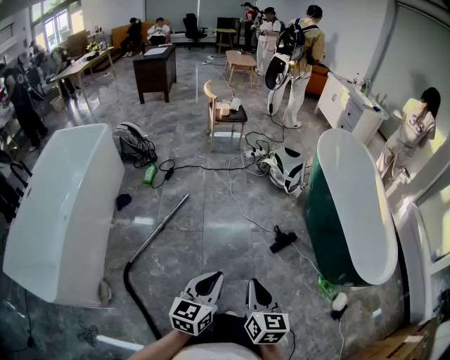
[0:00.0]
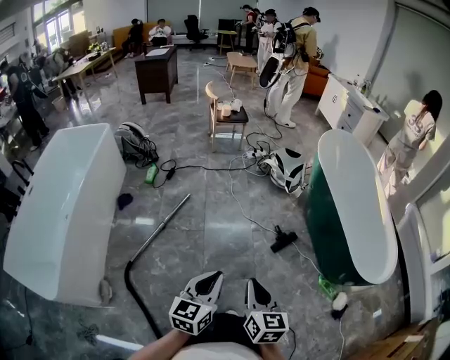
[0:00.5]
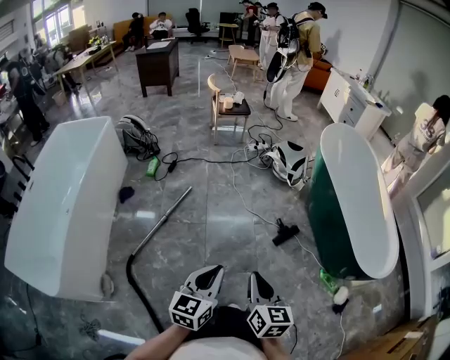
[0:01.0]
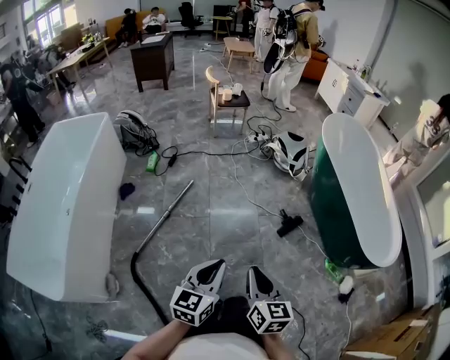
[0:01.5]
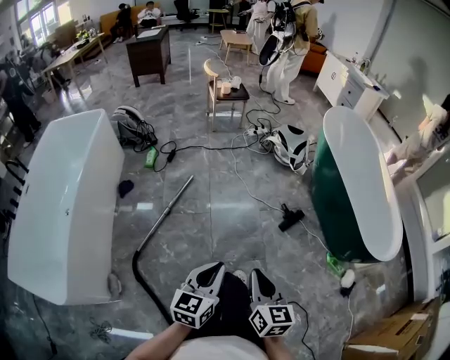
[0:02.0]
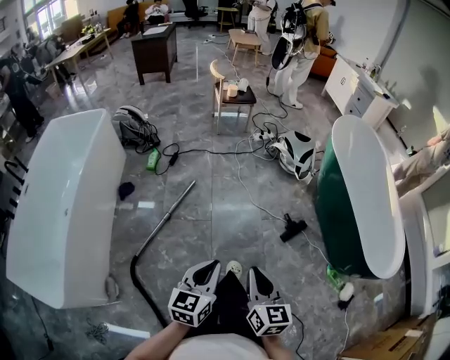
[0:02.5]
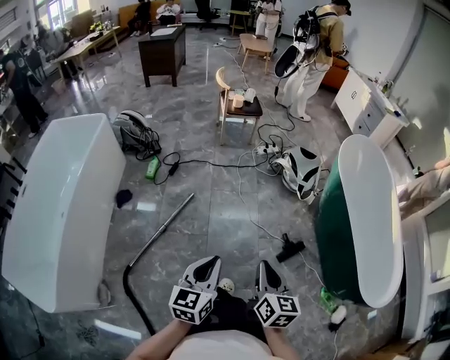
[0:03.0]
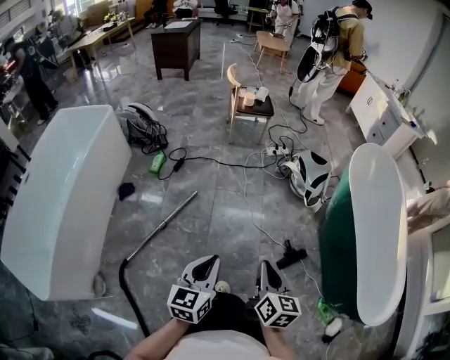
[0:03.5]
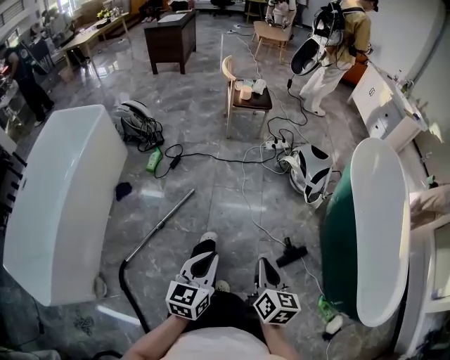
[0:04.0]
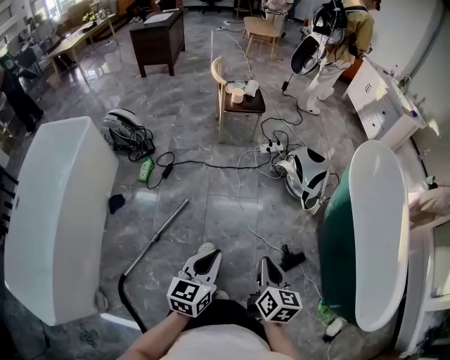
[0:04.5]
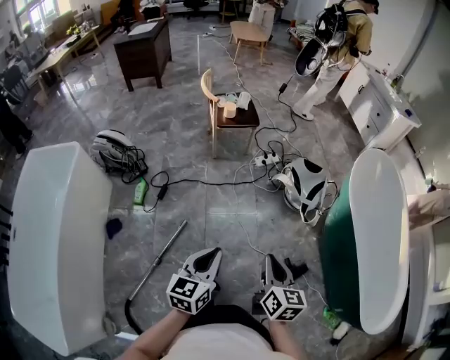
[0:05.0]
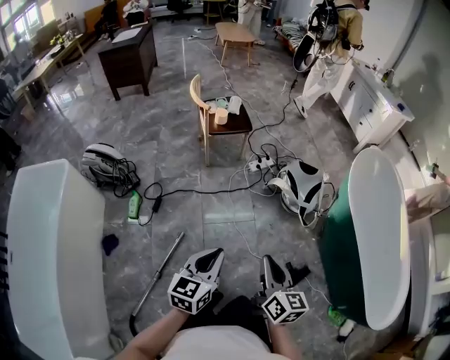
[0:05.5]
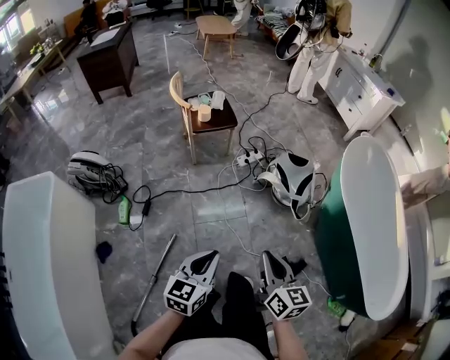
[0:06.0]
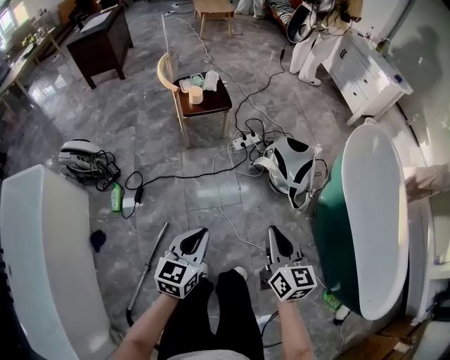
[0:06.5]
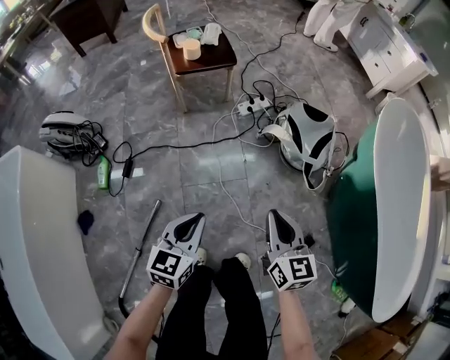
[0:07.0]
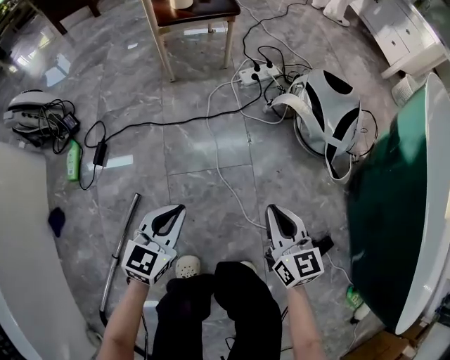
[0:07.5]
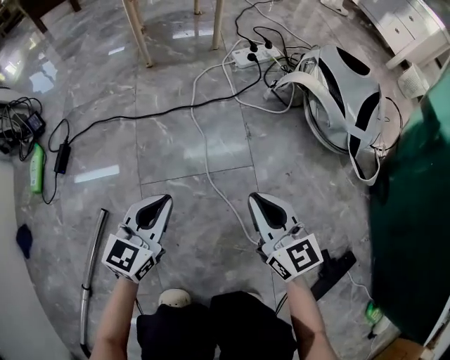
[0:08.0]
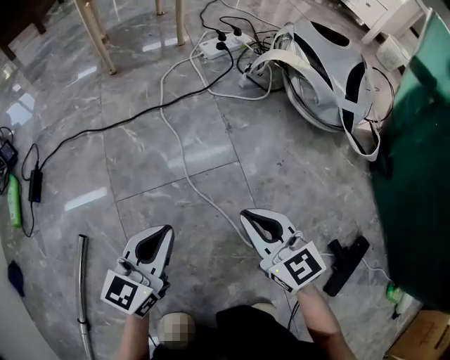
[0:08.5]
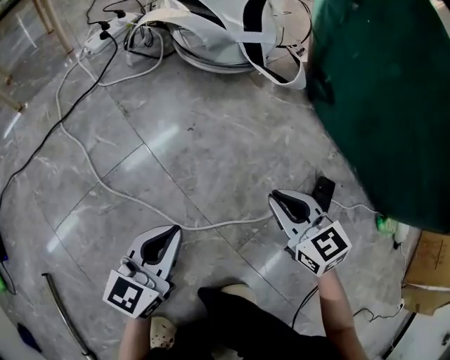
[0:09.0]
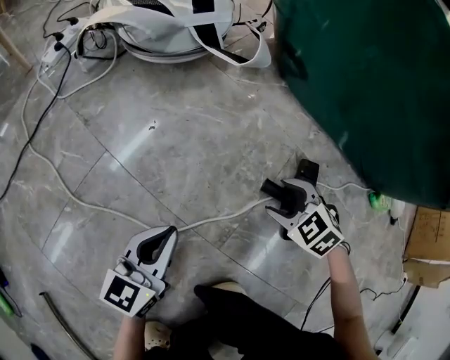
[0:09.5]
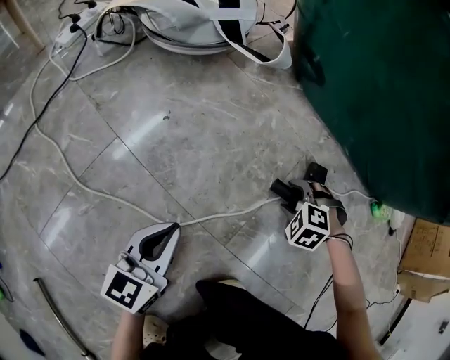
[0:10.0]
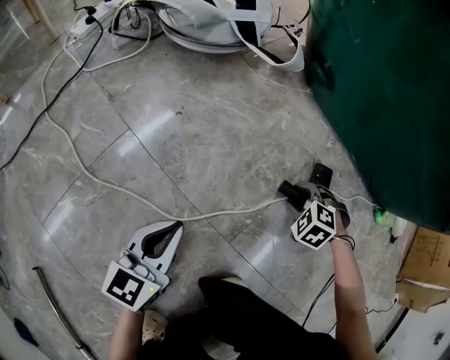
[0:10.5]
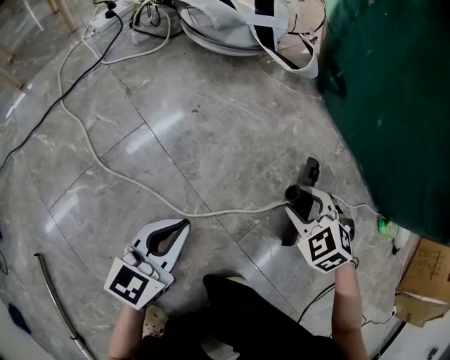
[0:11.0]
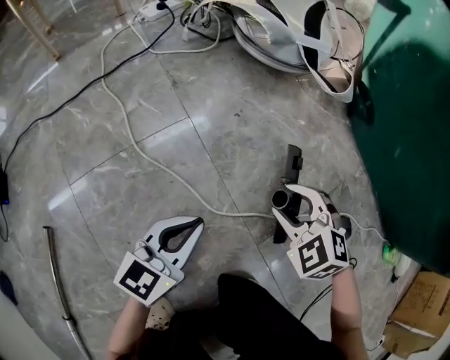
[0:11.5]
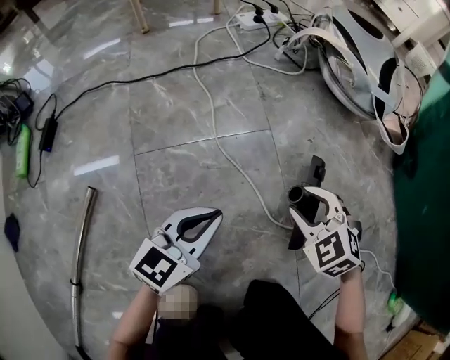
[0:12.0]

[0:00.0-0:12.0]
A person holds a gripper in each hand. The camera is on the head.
0:00.0 to 0:02.0: Both grippers move to the left, roughly 5 cm.
0:02.0 to 0:04.0: The grippers both shift forward by some 35 cm.
0:04.0 to 0:06.0: Both grippers travel together forward, about 30 cm. The left gripper rotates approximately 20 degrees.
0:06.0 to 0:08.0: The two grippers go some 60 cm downward. The right gripper turns by approximately 30 degrees.
0:08.0 to 0:10.0: The left gripper changes place by roughly 30 cm, and turns by roughly 40 degrees; the right gripper changes place by about 50 cm, points its fingers about 60 degrees further downward, and opens up.
0:10.0 to 0:12.0: The left gripper shifts by about 20 cm, and changes its angle by roughly 20 degrees; the right gripper shifts by some 35 cm, and rotates some 40 degrees.

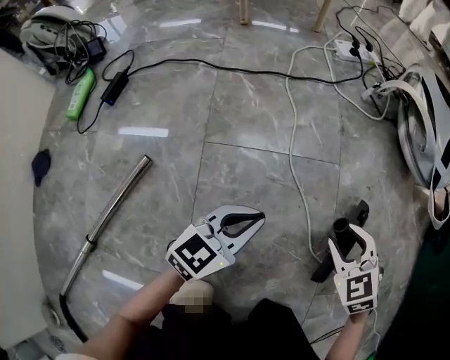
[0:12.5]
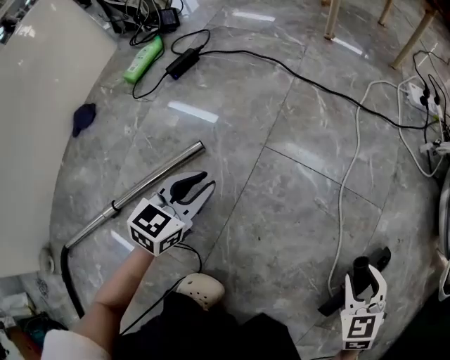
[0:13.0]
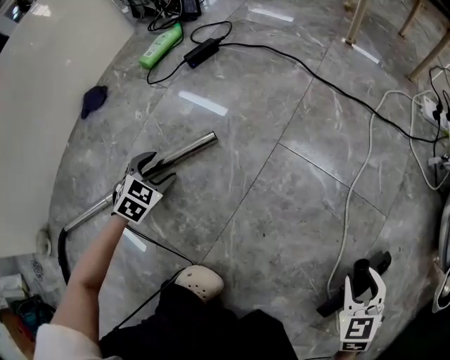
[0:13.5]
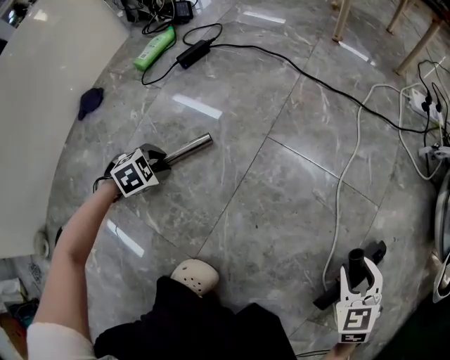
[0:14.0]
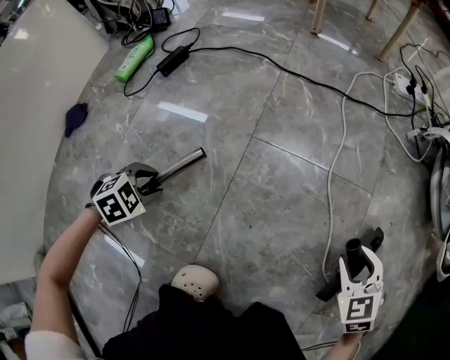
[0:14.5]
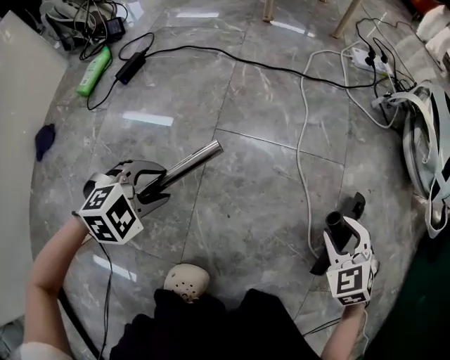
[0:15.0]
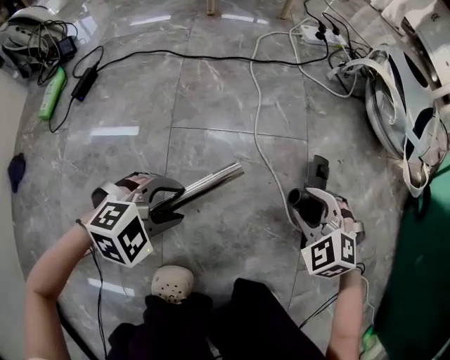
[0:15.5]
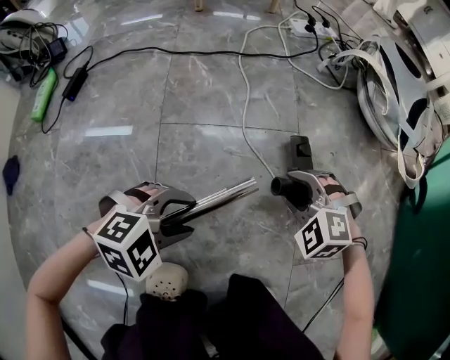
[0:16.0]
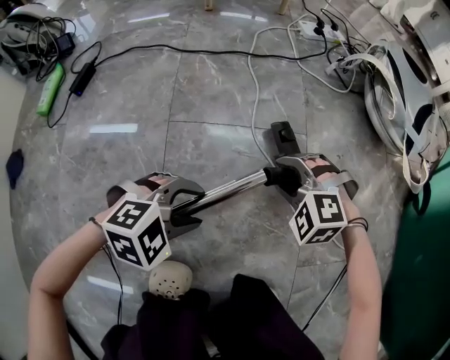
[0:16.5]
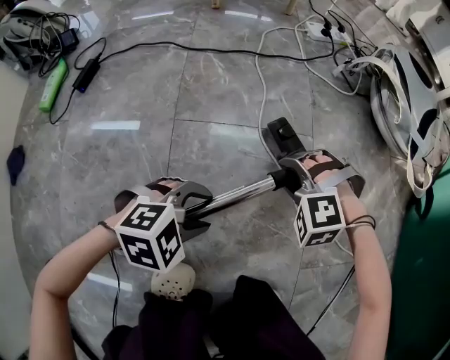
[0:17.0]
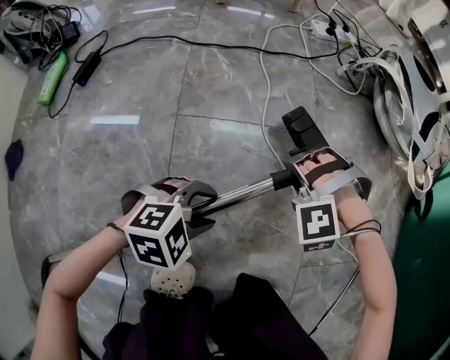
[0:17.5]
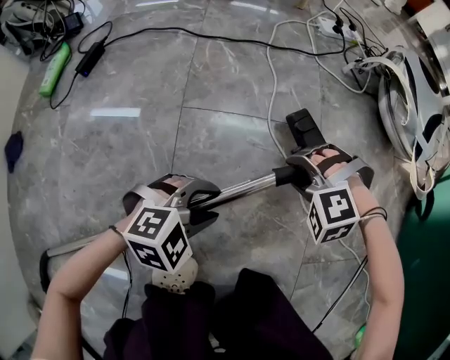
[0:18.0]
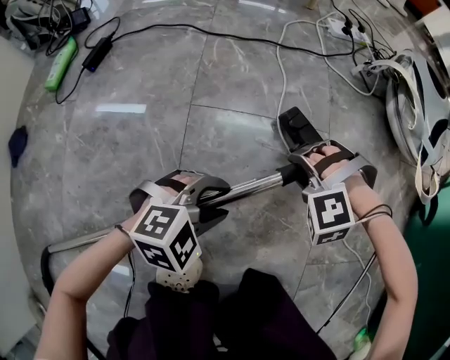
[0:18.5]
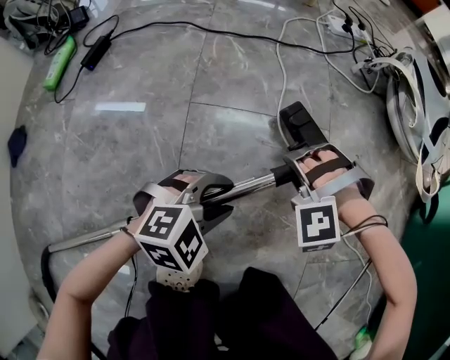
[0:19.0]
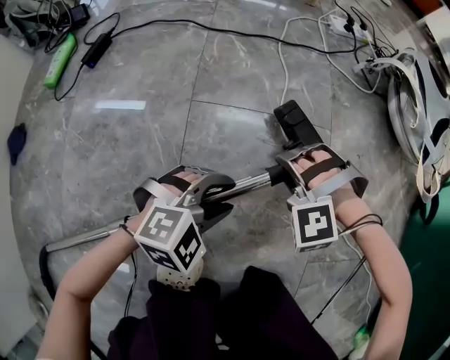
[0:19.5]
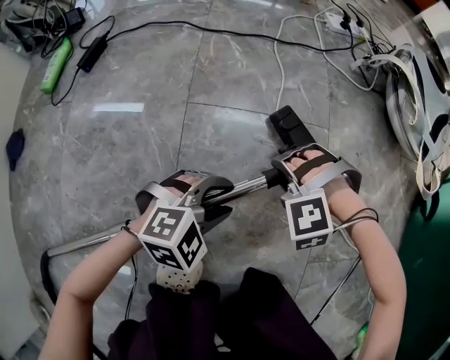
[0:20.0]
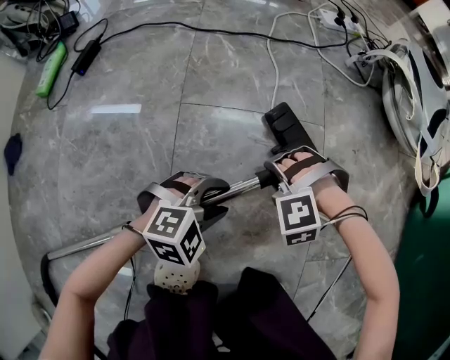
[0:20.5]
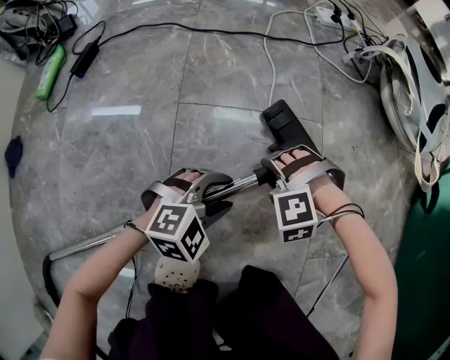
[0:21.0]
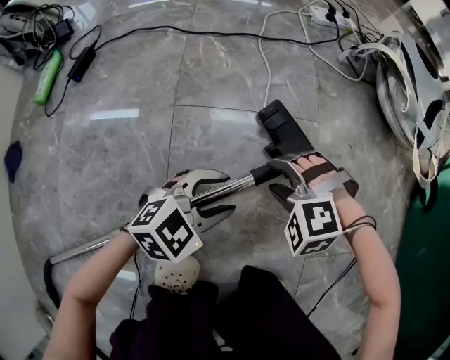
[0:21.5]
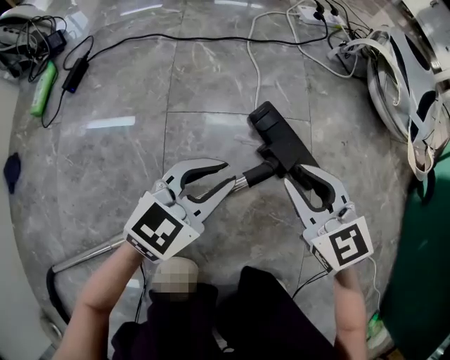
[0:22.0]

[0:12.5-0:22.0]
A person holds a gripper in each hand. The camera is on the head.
0:12.5 to 0:14.5: The left gripper shifts by about 35 cm, tips its fingers downward by approximately 60 degrees, and opens.
0:14.5 to 0:16.5: The right gripper moves about 10 cm, and twists roughly 40 degrees counterclockwise, seen from behind, while the left gripper ends up about 30 cm from where it was, and turns by roughly 50 degrees.
0:16.5 to 0:18.0: The right gripper swivels about 20 degrees.
0:18.0 to 0:20.0: The right gripper moves about 5 cm.
0:20.0 to 0:22.0: The left gripper moves upward and forward, about 10 cm, and rotates about 40 degrees, while the right gripper travels upward by approximately 10 cm, and rotates around the line of its fingers by about 80 degrees, clockwise from behind.

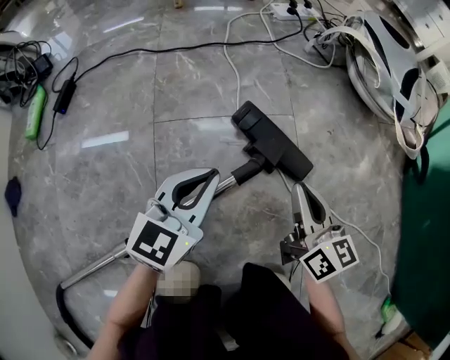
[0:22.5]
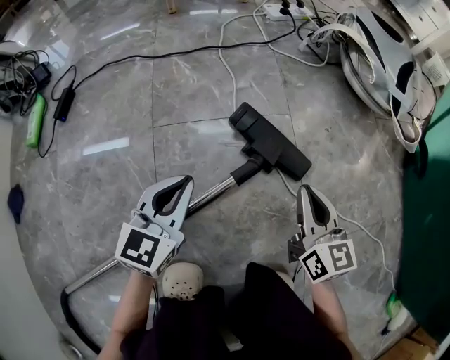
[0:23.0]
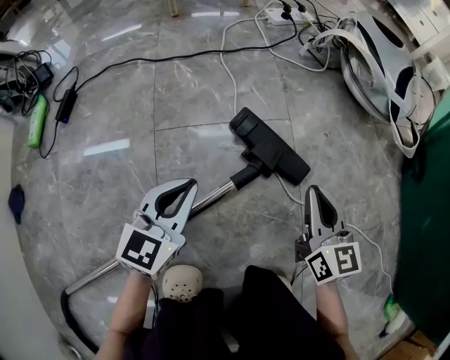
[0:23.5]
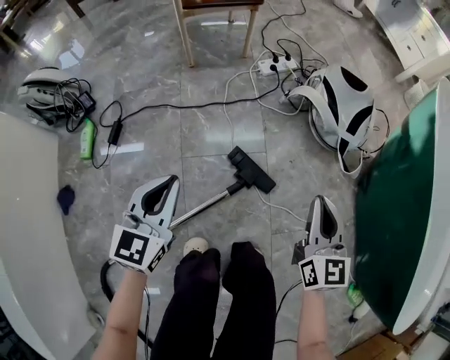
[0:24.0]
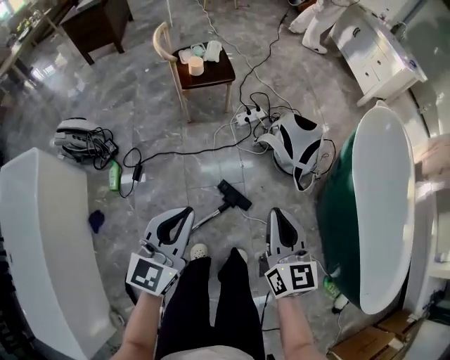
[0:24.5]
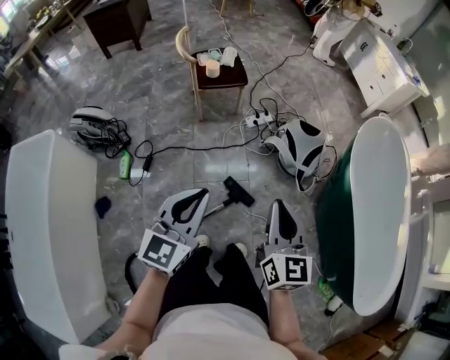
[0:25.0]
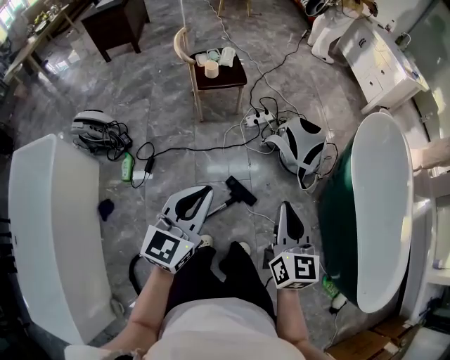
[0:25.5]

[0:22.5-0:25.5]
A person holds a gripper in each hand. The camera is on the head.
0:22.5 to 0:24.0: The two grippers go some 35 cm upward. The right gripper rotates about 20 degrees.
0:24.0 to 0:25.5: Both grippers travel together upward, some 40 cm.

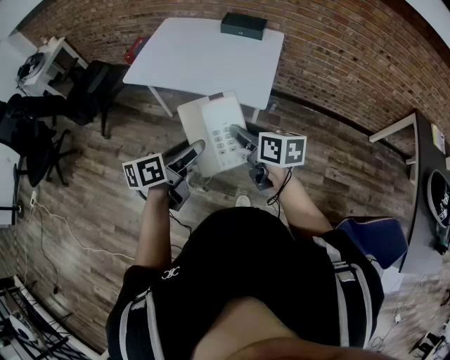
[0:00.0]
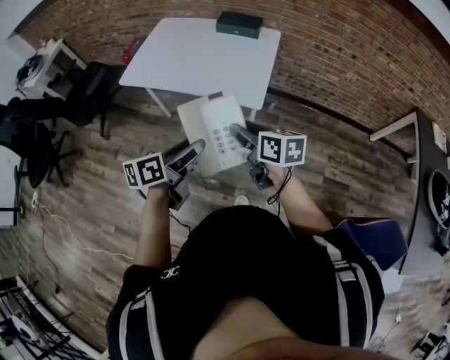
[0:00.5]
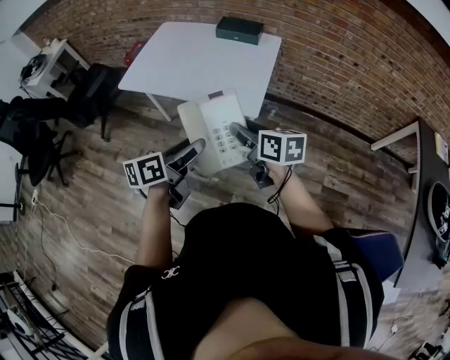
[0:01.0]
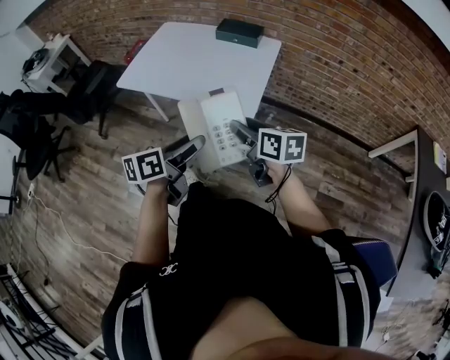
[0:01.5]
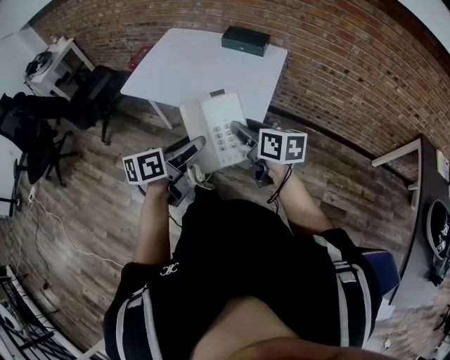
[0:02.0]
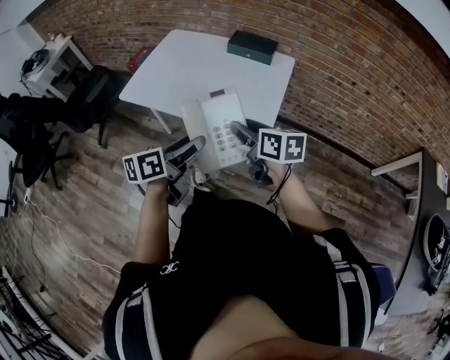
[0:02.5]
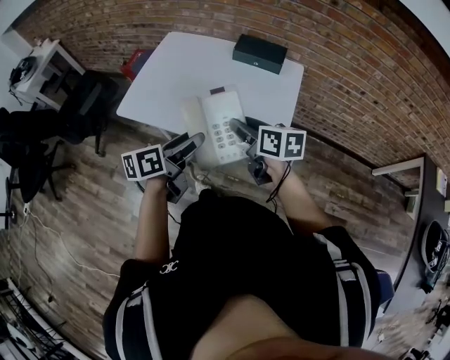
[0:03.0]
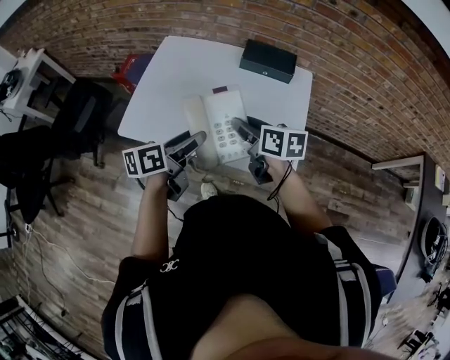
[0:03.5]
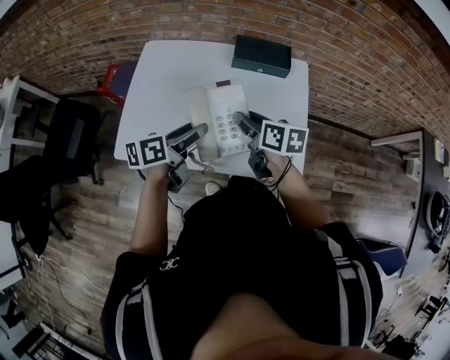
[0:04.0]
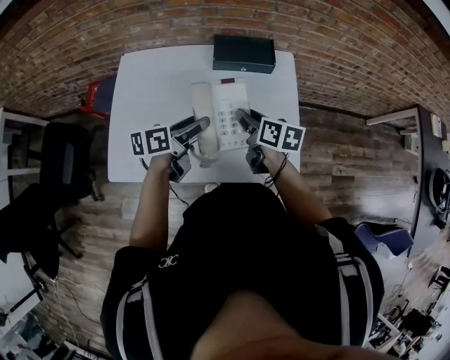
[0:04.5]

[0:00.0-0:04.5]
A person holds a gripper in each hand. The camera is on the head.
0:00.0 to 0:02.0: Both grippers travel together forward and to the right, approximately 10 cm.
0:02.0 to 0:04.5: Both grippers are carried roughly 50 cm. The right gripper turns by some 30 degrees; the left gripper rotates some 30 degrees.
